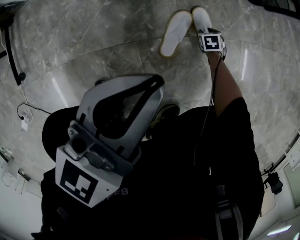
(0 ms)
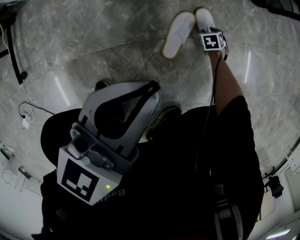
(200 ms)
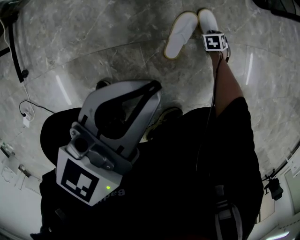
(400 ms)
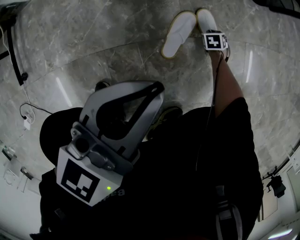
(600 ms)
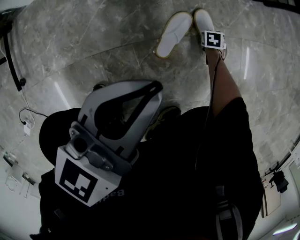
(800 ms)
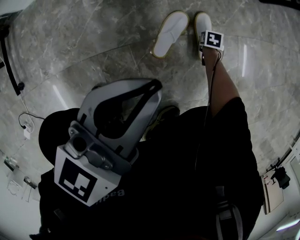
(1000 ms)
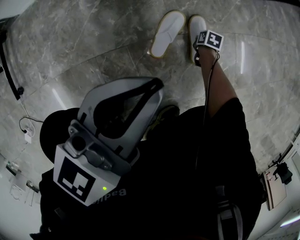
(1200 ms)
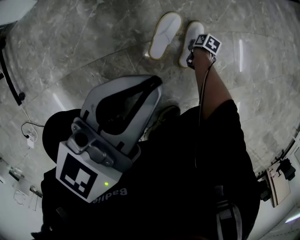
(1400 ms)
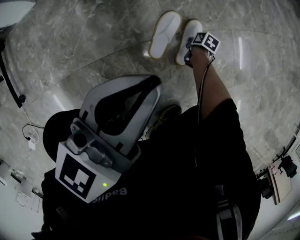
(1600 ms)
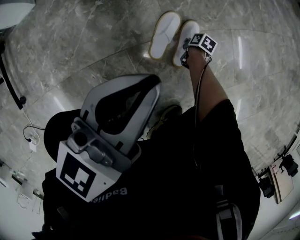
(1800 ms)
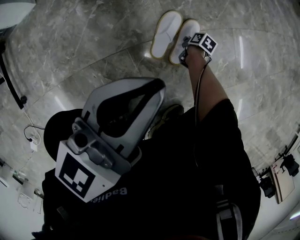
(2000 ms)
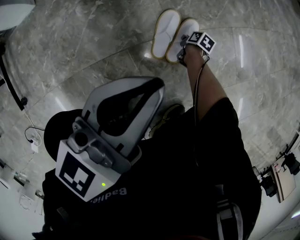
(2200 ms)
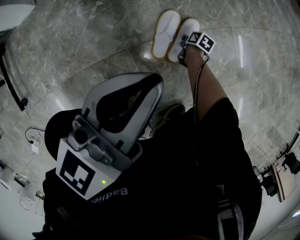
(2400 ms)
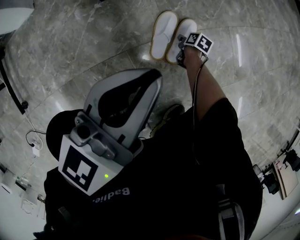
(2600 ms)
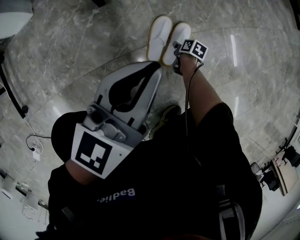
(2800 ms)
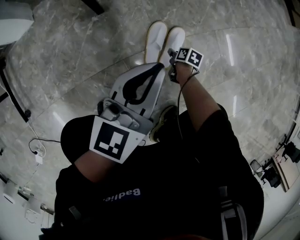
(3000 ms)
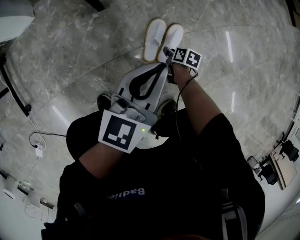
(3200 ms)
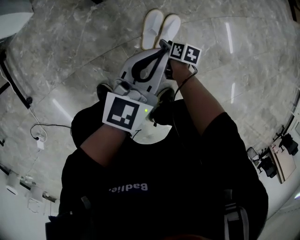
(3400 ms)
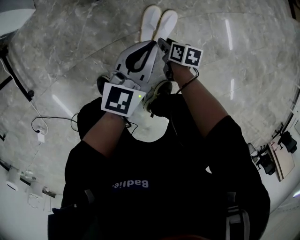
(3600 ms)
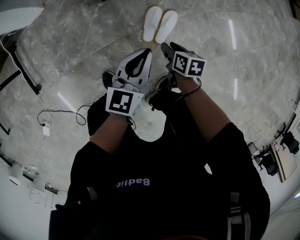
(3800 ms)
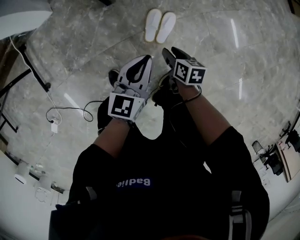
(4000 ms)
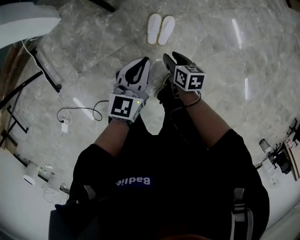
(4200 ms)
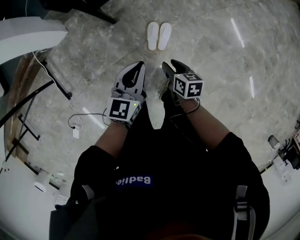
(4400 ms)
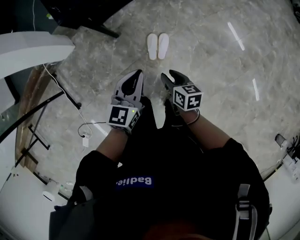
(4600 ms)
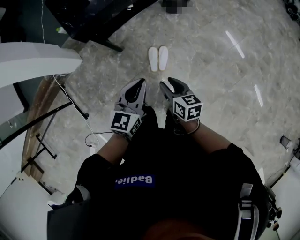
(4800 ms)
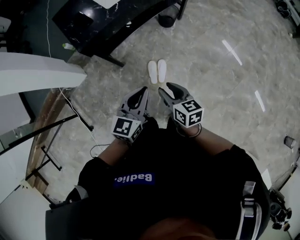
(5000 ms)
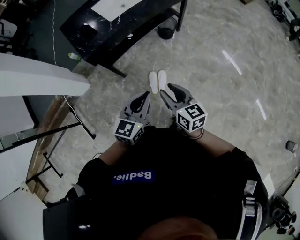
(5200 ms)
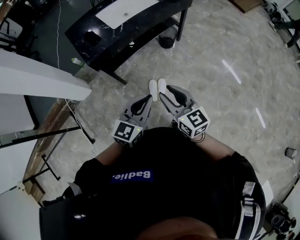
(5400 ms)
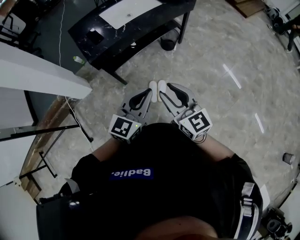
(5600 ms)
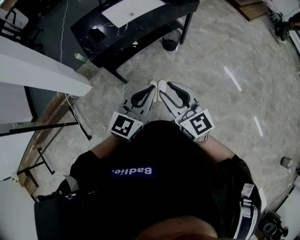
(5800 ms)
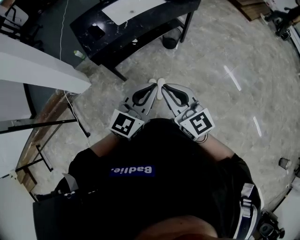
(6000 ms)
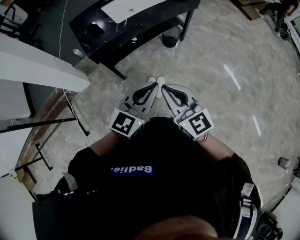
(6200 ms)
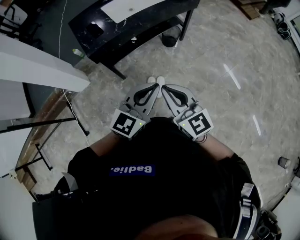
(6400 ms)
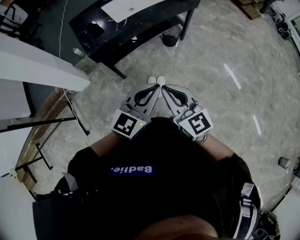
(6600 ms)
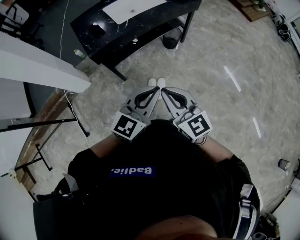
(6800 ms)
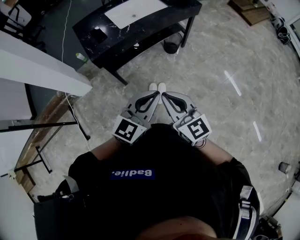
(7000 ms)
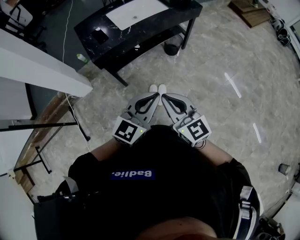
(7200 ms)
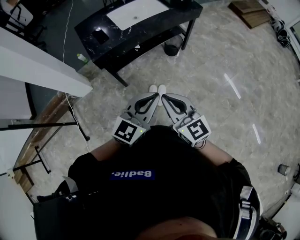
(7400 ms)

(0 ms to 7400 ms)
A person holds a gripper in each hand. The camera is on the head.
0 ms - 1400 ms: The right gripper moves roughly 5 cm, rotates around the line of its fingers by roughly 60 degrees, clockwise from behind, and closes.
1400 ms - 3000 ms: The right gripper ends up approximately 10 cm from where it was, and opens up.
3000 ms - 4400 ms: The left gripper shifts approximately 25 cm upward. The right gripper travels upward by approximately 50 cm, and changes its angle by approximately 20 degrees.
4400 ms - 6000 ms: The two grippers go about 50 cm upward. The left gripper turns by approximately 30 degrees. The right gripper angles its fingers upward, by approximately 40 degrees, and closes.
6000 ms - 7400 ms: There are only small adjustments of the grippers.

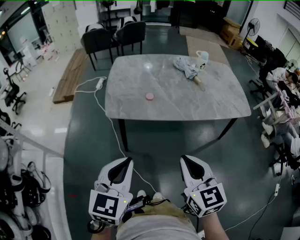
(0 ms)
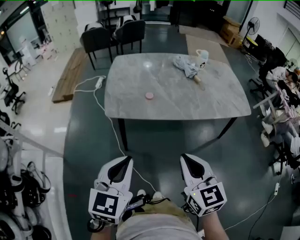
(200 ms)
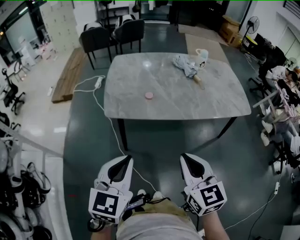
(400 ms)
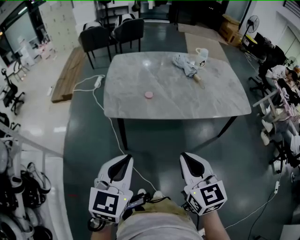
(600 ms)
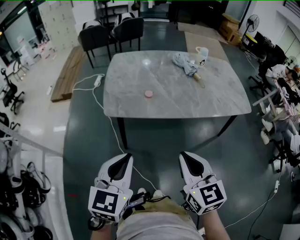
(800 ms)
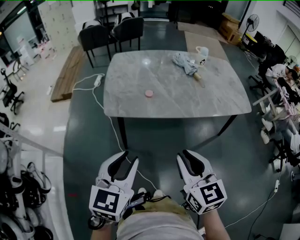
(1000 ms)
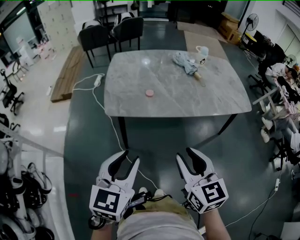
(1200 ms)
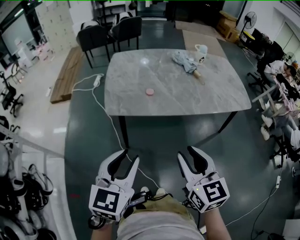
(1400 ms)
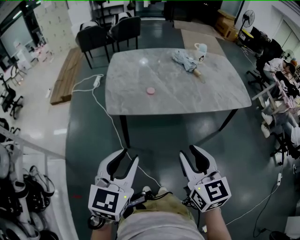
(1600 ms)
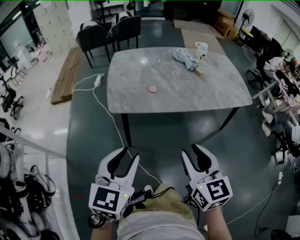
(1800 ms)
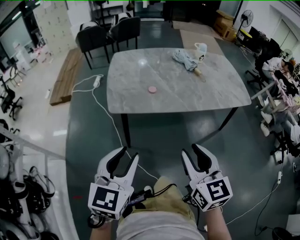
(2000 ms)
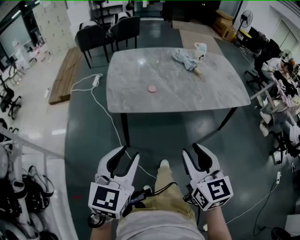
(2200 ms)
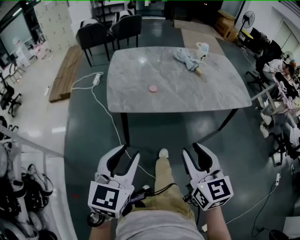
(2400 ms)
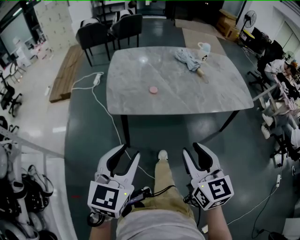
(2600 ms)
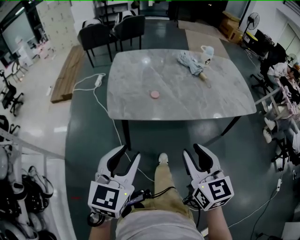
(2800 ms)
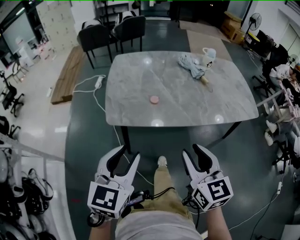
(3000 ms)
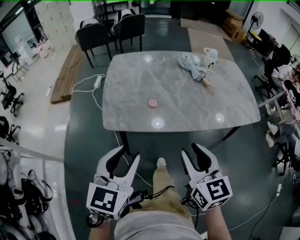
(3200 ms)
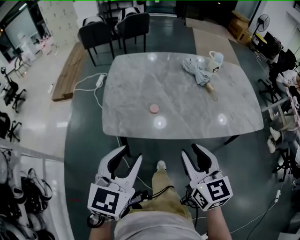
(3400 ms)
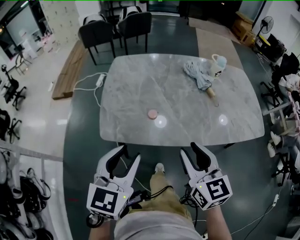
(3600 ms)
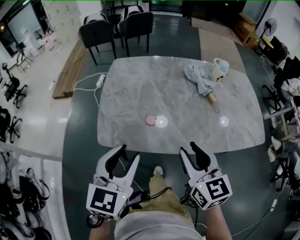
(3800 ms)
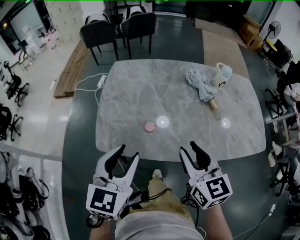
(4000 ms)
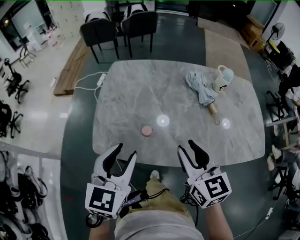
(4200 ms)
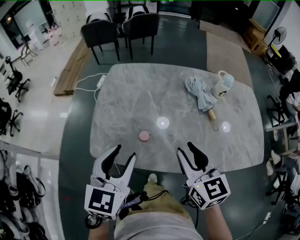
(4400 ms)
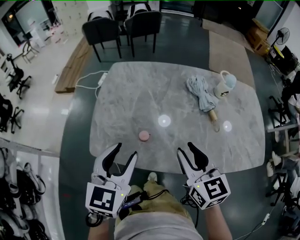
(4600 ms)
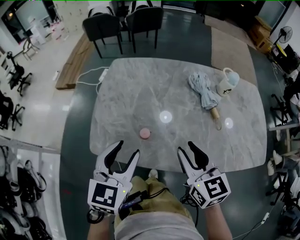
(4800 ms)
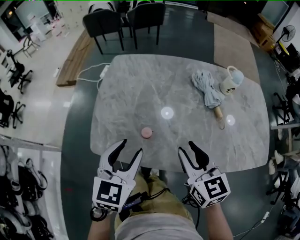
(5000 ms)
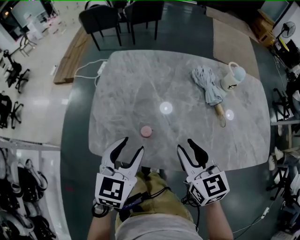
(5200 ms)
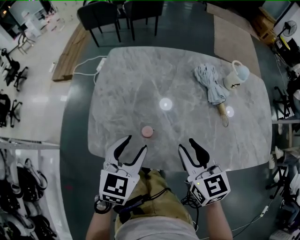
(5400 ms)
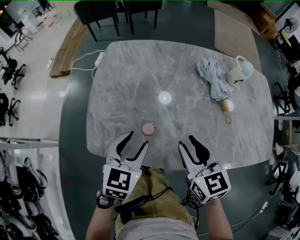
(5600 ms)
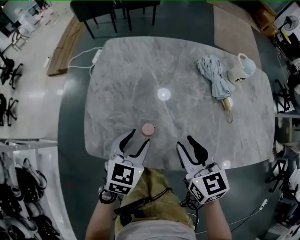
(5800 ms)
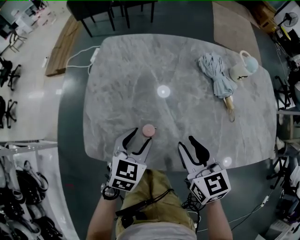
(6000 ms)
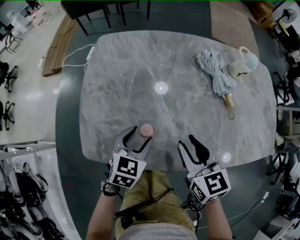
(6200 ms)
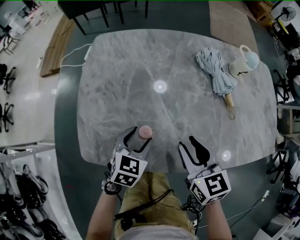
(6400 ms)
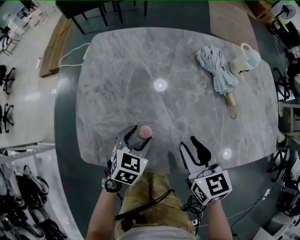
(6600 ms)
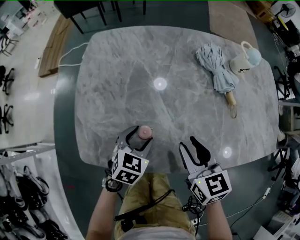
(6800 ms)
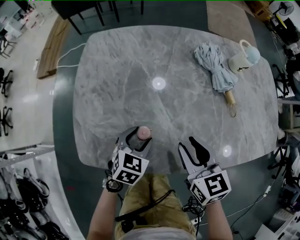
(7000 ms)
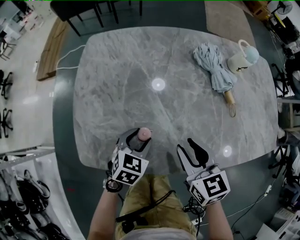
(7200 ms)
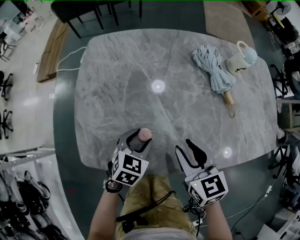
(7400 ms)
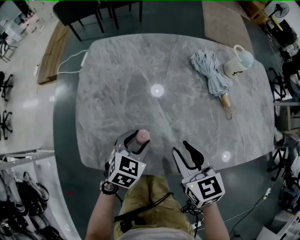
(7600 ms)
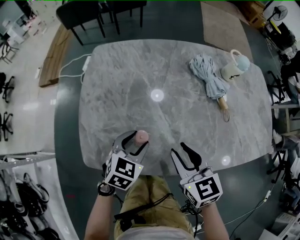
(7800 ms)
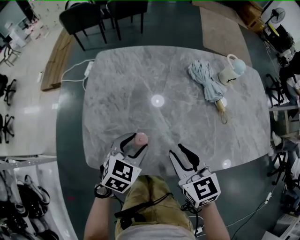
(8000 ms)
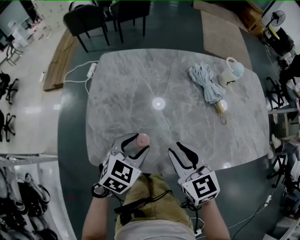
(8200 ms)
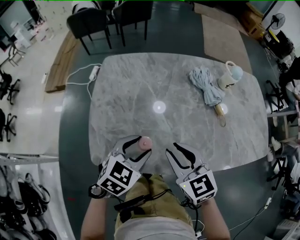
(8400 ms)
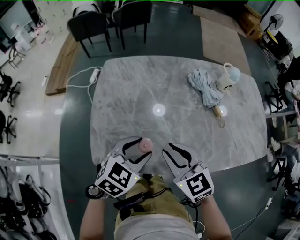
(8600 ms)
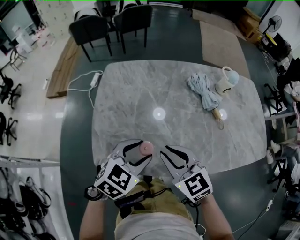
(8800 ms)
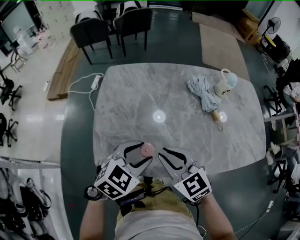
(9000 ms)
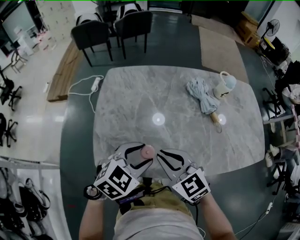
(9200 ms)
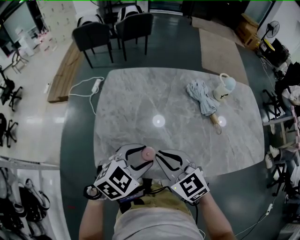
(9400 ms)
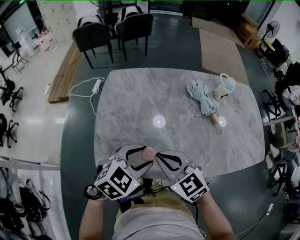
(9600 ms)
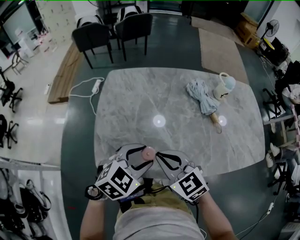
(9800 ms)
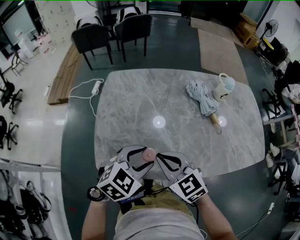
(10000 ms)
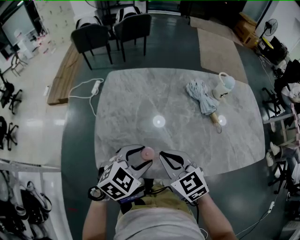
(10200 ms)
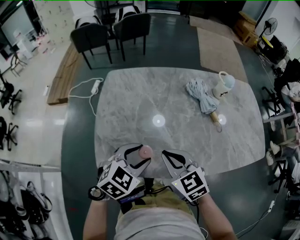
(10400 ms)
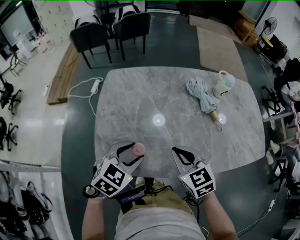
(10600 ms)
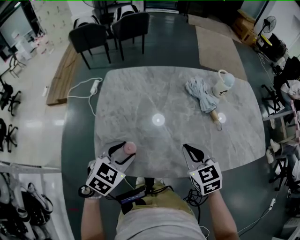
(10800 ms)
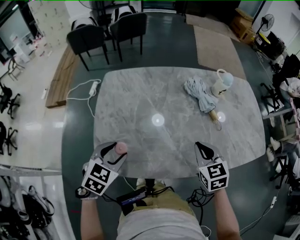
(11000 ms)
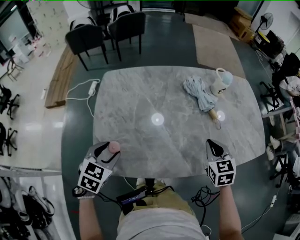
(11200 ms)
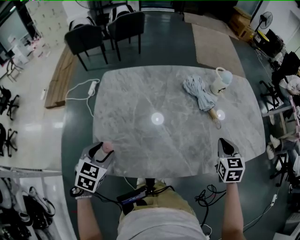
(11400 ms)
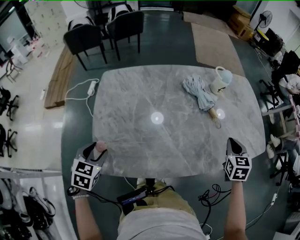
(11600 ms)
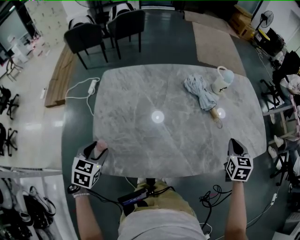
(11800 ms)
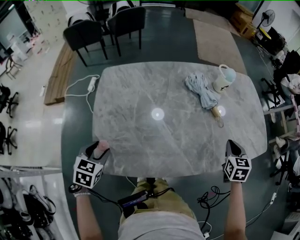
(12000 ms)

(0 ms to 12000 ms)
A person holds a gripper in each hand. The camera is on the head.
0 ms - 1600 ms: The right gripper opens up; the left gripper opens up.
1600 ms - 3000 ms: The two grippers go approximately 10 cm forward.
3000 ms - 4400 ms: Both grippers travel together forward, roughly 25 cm.
4400 ms - 6000 ms: The right gripper goes some 10 cm downward. Meanwhile the left gripper heads downward and forward, covering some 20 cm, and changes its angle by some 20 degrees.
7600 ms - 9000 ms: The right gripper is displaced to the left and upward by approximately 10 cm, and changes its angle by roughly 30 degrees. Meanwhile the left gripper heads upward, covering roughly 15 cm.
9000 ms - 10400 ms: The grippers stay close to where they were, moving slightly.
10400 ms - 12000 ms: The left gripper goes roughly 20 cm to the left and downward, and swivels roughly 30 degrees. Meanwhile the right gripper shifts some 30 cm to the right, and swivels about 50 degrees.

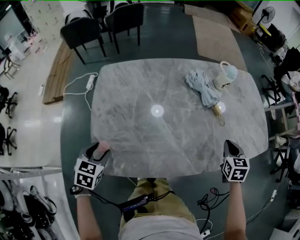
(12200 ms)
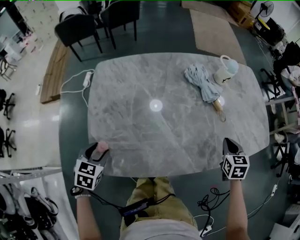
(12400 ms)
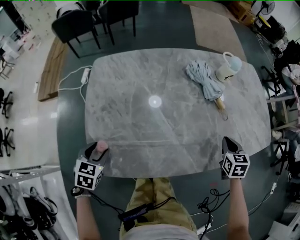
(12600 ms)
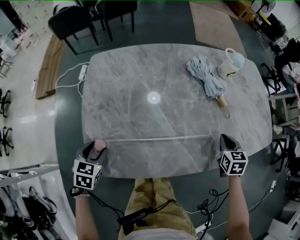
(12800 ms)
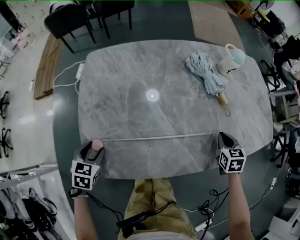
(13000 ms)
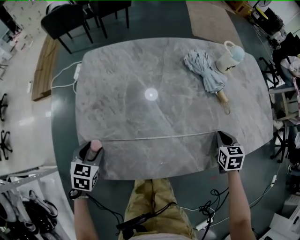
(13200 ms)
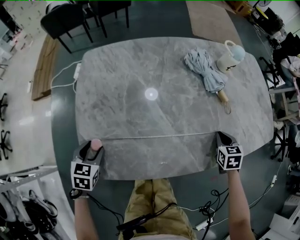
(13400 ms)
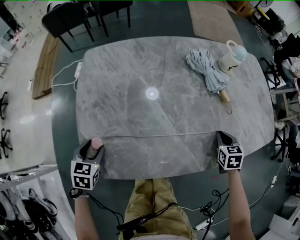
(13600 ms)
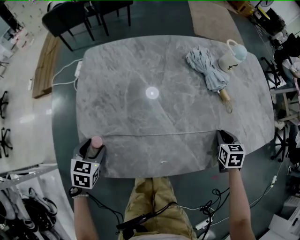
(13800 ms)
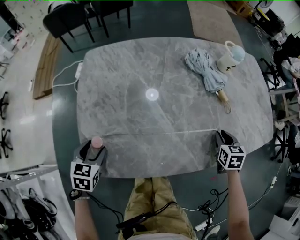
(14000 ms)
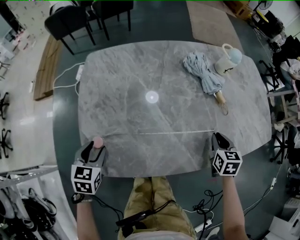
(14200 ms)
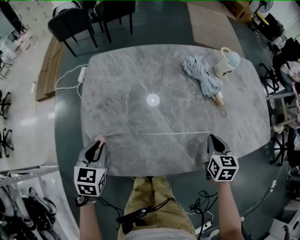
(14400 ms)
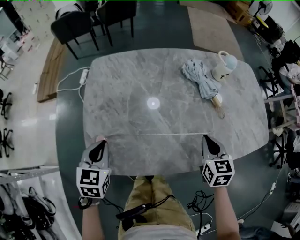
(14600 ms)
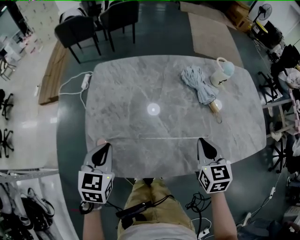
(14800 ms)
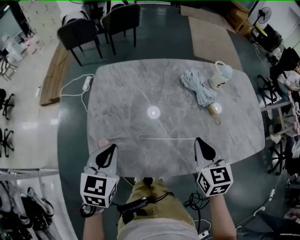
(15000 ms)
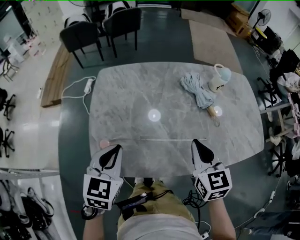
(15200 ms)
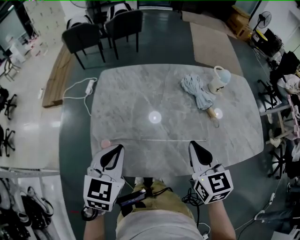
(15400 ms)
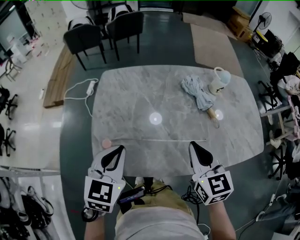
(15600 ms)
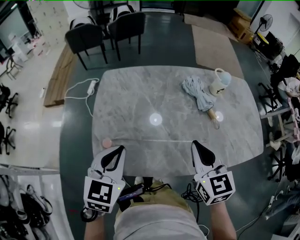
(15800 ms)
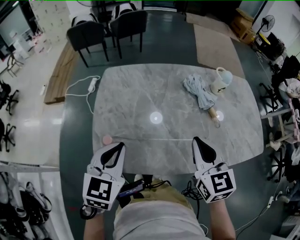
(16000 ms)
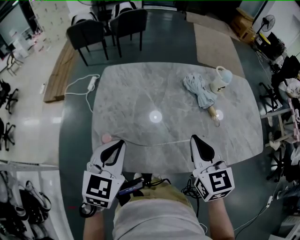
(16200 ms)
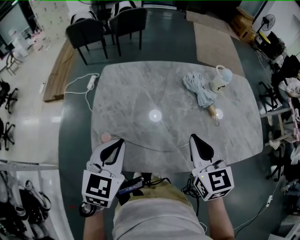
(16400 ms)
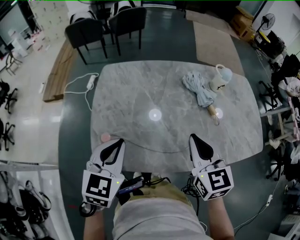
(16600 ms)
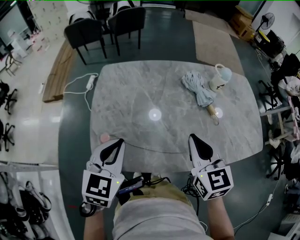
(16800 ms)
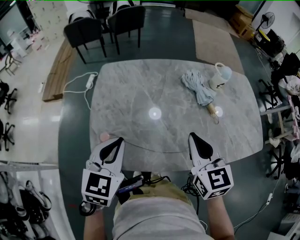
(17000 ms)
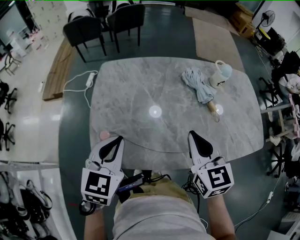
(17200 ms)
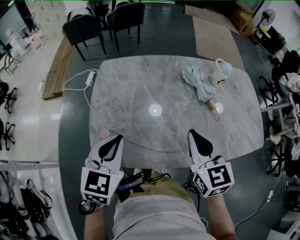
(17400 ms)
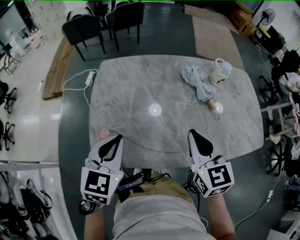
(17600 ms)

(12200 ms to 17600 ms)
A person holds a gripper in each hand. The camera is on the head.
12200 ms - 13600 ms: The grippers both shift downward by about 10 cm.
13600 ms - 15000 ms: The right gripper goes about 25 cm upward and to the left, and swivels approximately 30 degrees; the left gripper heads upward and to the right, covering some 20 cm, and closes up.
15000 ms - 16200 ms: The grippers both shift upward by about 5 cm.
16200 ms - 17600 ms: Both grippers stay put.
